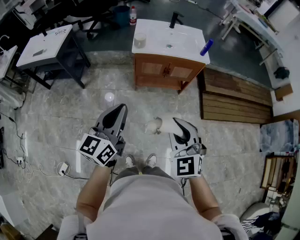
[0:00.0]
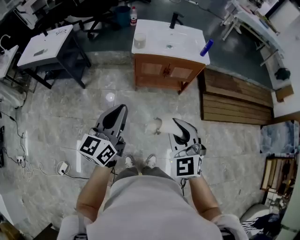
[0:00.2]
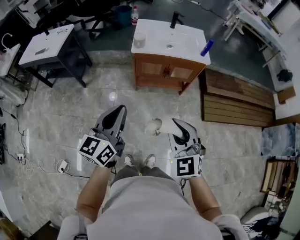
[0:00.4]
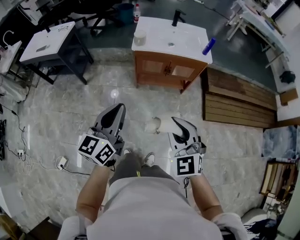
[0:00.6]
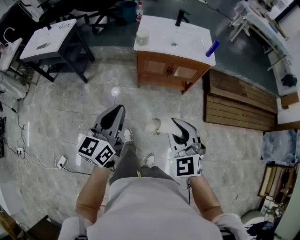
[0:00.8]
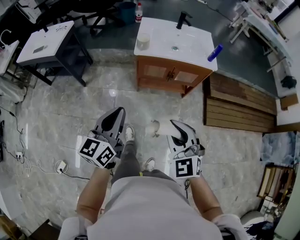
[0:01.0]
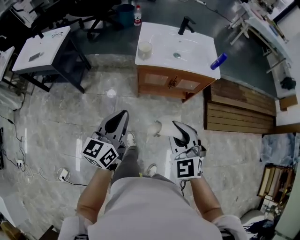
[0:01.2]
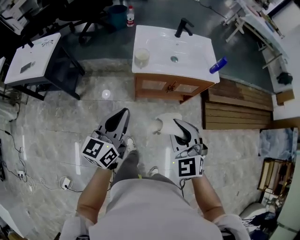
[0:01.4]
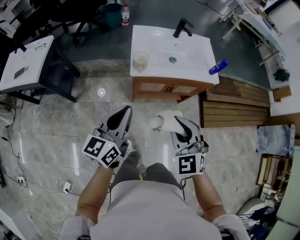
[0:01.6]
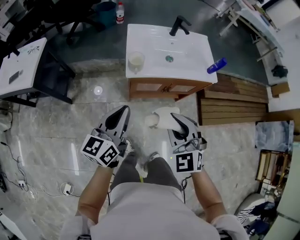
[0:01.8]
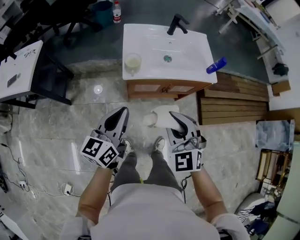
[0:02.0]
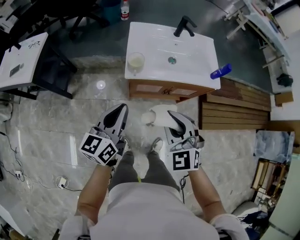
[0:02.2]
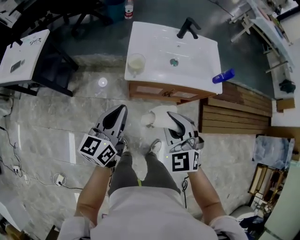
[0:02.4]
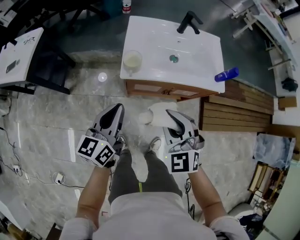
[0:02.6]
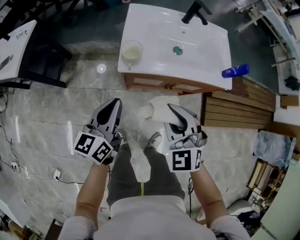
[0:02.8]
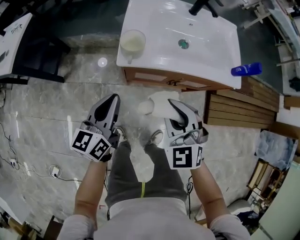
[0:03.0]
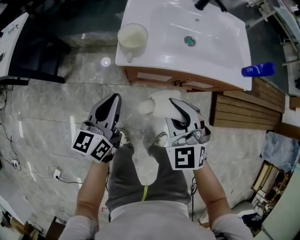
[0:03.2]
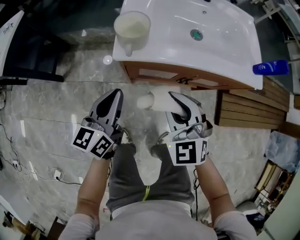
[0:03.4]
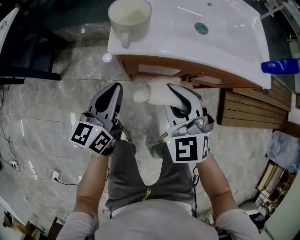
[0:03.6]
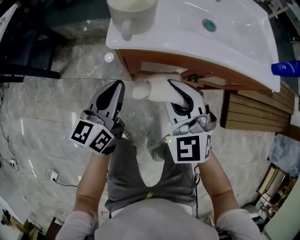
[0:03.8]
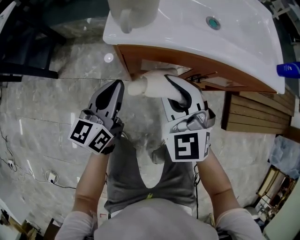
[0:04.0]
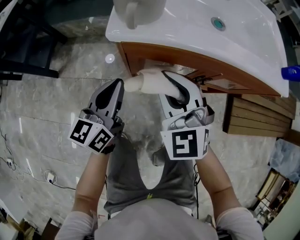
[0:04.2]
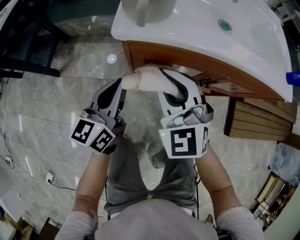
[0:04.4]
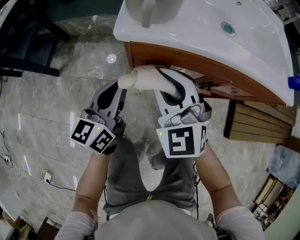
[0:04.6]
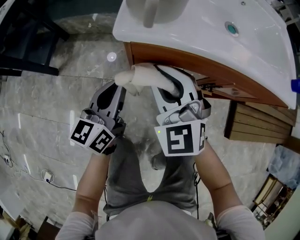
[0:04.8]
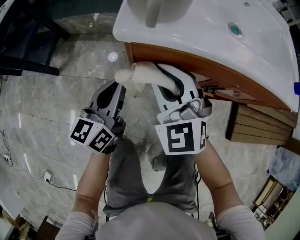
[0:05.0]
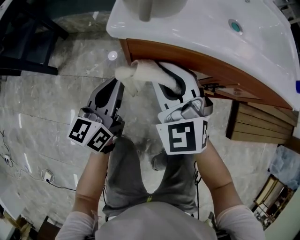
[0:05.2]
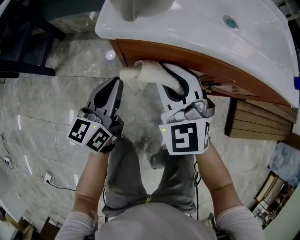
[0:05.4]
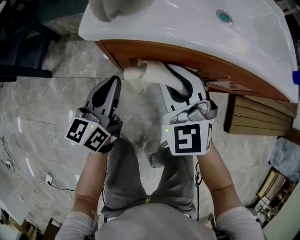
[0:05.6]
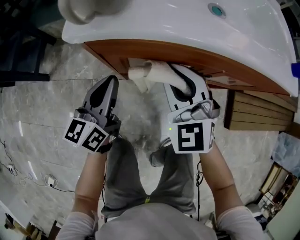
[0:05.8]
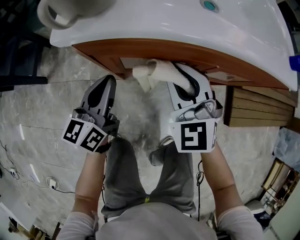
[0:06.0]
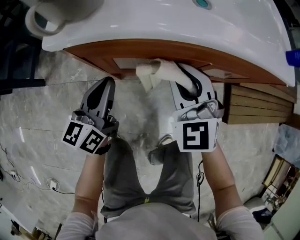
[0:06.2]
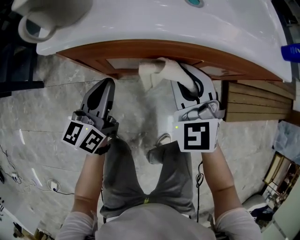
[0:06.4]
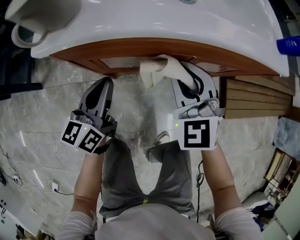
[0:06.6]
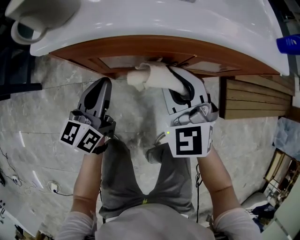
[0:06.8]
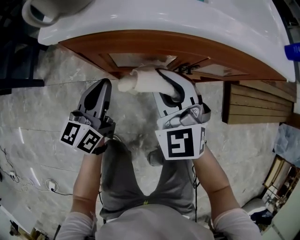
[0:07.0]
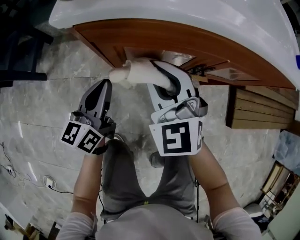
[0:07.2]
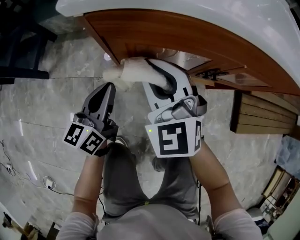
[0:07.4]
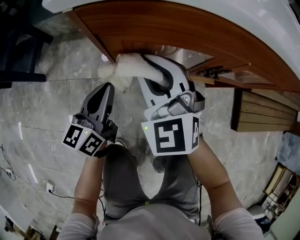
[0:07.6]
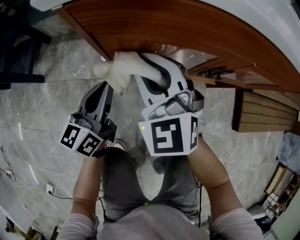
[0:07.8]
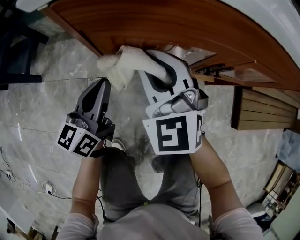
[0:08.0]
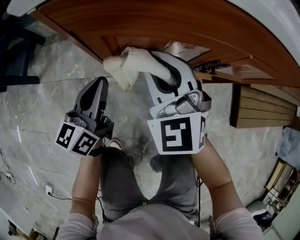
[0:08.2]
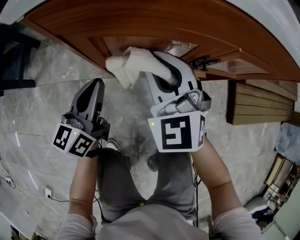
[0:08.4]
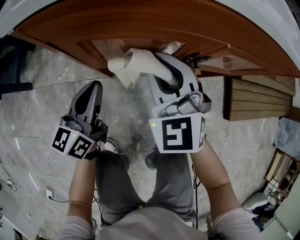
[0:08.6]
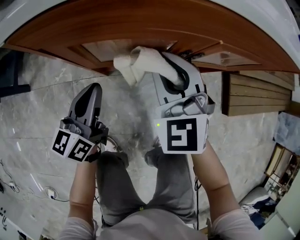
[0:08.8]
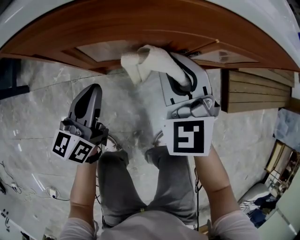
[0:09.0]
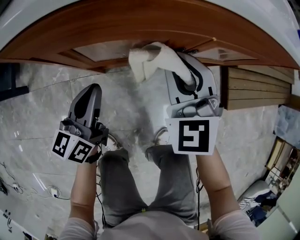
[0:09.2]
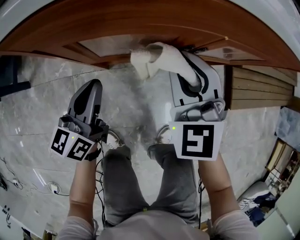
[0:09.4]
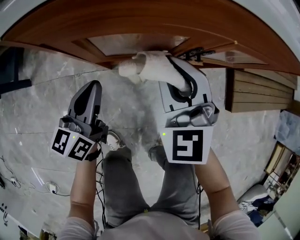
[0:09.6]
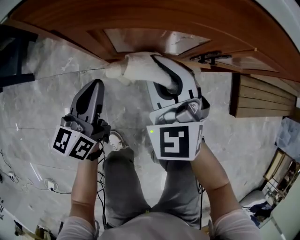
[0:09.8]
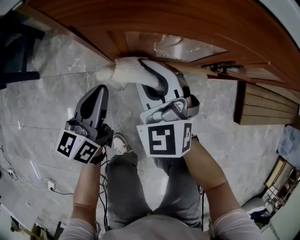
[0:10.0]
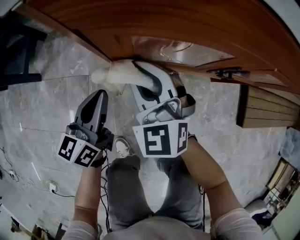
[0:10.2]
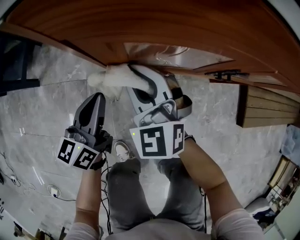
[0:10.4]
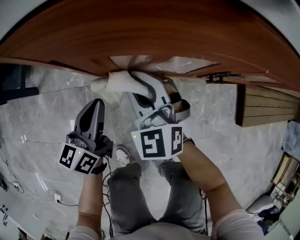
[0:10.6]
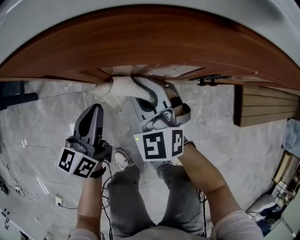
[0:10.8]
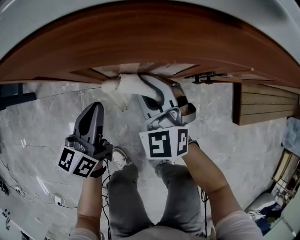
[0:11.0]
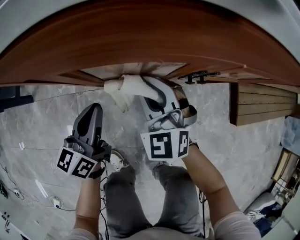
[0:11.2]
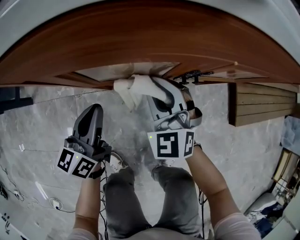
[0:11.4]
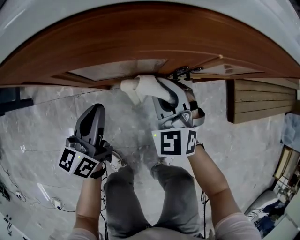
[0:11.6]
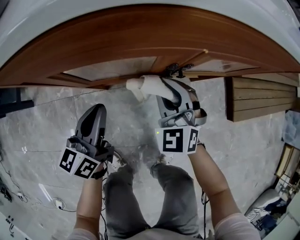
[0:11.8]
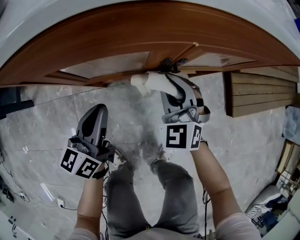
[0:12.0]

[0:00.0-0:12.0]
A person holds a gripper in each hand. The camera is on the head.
0:00.0 to 0:01.6: Both grippers travel together forward, about 30 cm.
0:01.6 to 0:03.0: The two grippers go roughly 30 cm downward and forward.
0:03.0 to 0:04.4: The grippers both shift downward by approximately 25 cm.
0:04.4 to 0:06.0: The right gripper is displaced to the right and downward by approximately 15 cm. The left gripper heads to the right and downward, covering some 10 cm.
0:06.0 to 0:07.6: The right gripper is displaced to the left and downward by roughly 15 cm. The left gripper goes some 10 cm downward.
0:07.6 to 0:09.0: The right gripper heads to the right, covering some 15 cm, while the left gripper goes roughly 10 cm to the right.
0:09.0 to 0:10.4: The left gripper shifts approximately 10 cm to the left and downward. Meanwhile the right gripper moves to the left and downward, approximately 20 cm.
0:10.4 to 0:12.0: The right gripper heads to the right, covering about 25 cm. The left gripper is displaced to the right by approximately 15 cm.

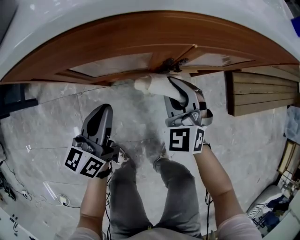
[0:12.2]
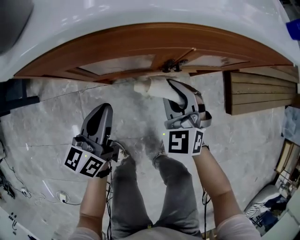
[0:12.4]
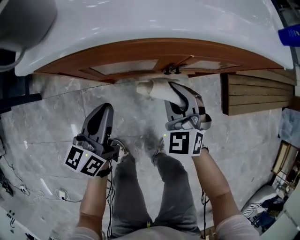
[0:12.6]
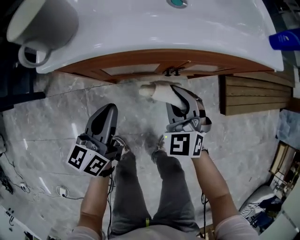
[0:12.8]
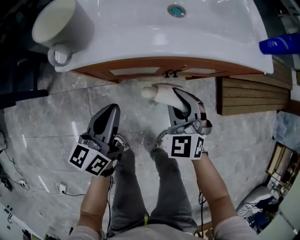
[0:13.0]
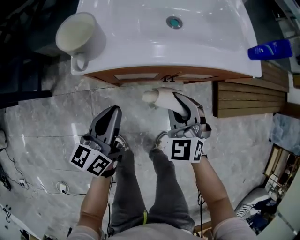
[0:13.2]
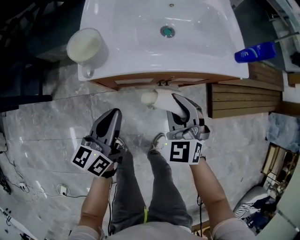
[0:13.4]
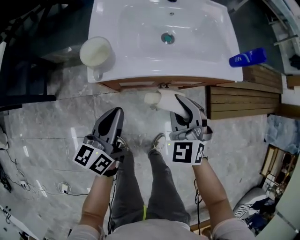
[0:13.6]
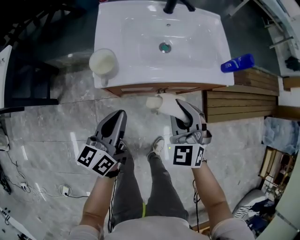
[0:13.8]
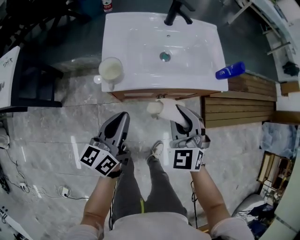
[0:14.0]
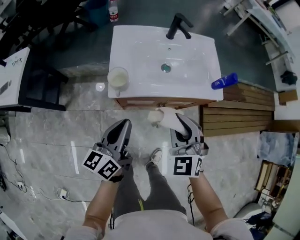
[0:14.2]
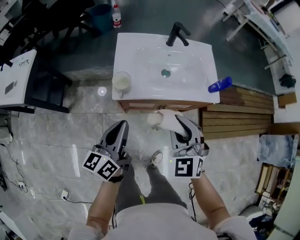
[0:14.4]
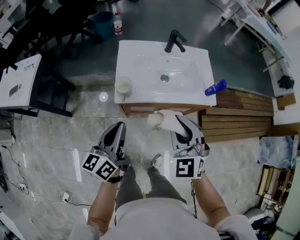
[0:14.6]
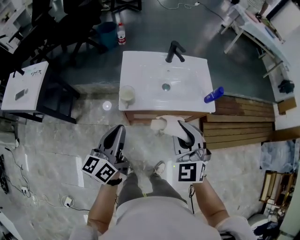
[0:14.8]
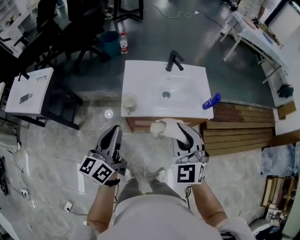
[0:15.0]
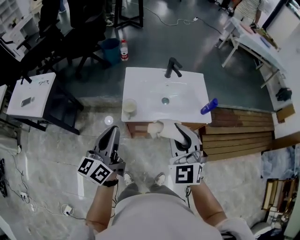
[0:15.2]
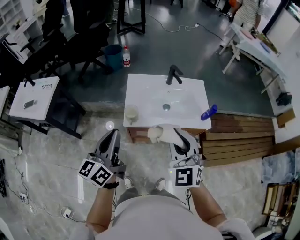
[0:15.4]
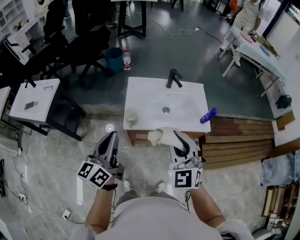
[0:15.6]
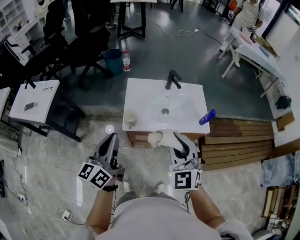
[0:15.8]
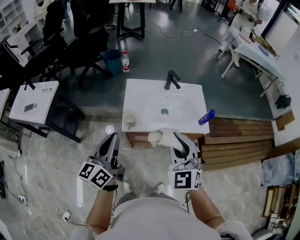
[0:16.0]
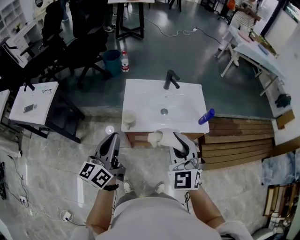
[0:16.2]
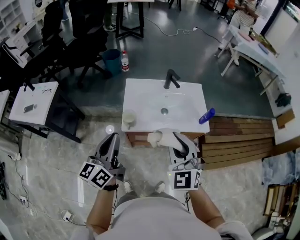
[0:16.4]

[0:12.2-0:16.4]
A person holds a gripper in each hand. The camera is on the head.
0:12.2 to 0:13.6: The grippers both shift upward by approximately 35 cm.
0:13.6 to 0:15.0: The two grippers go roughly 35 cm upward.
0:15.0 to 0:16.4: The grippers move only a little.

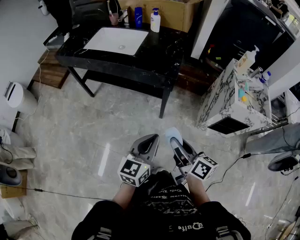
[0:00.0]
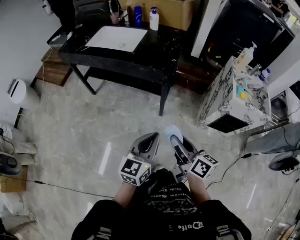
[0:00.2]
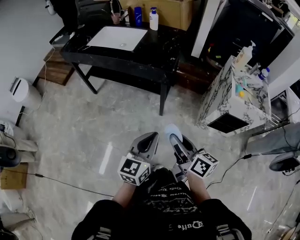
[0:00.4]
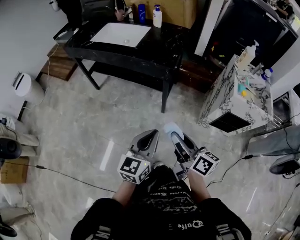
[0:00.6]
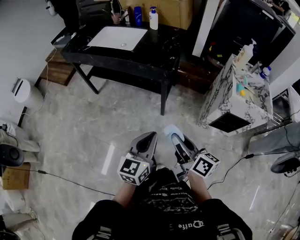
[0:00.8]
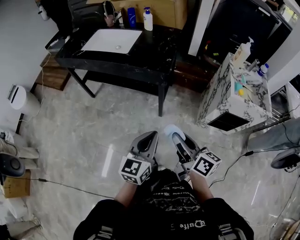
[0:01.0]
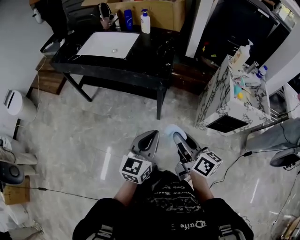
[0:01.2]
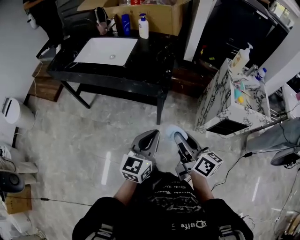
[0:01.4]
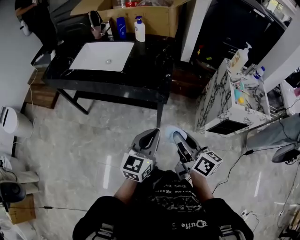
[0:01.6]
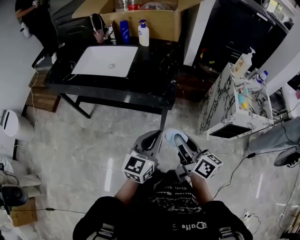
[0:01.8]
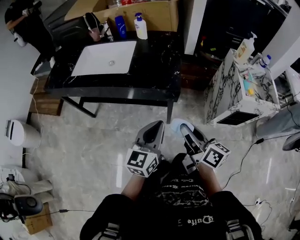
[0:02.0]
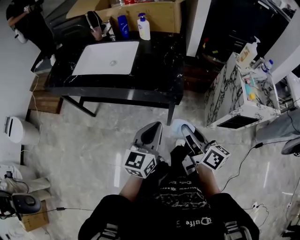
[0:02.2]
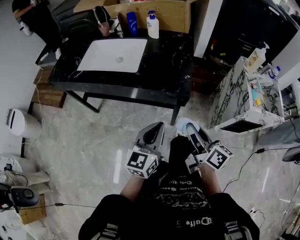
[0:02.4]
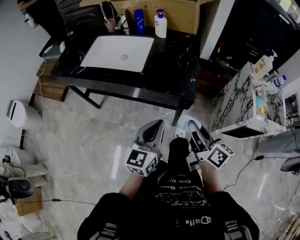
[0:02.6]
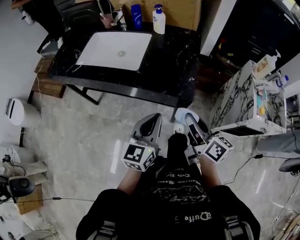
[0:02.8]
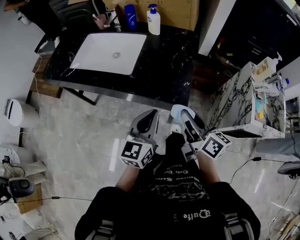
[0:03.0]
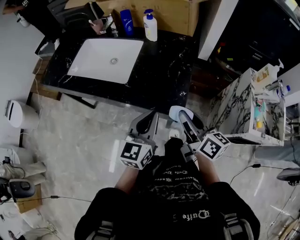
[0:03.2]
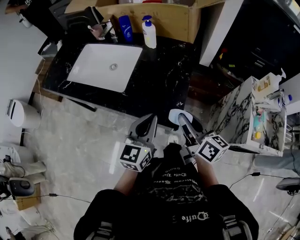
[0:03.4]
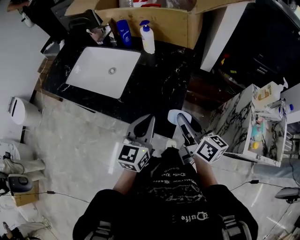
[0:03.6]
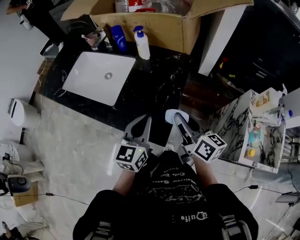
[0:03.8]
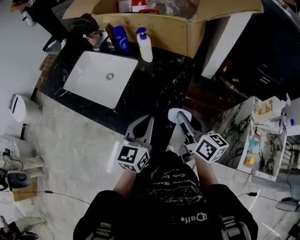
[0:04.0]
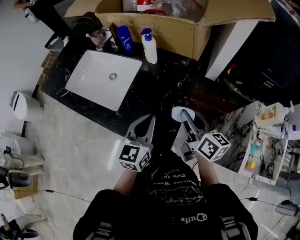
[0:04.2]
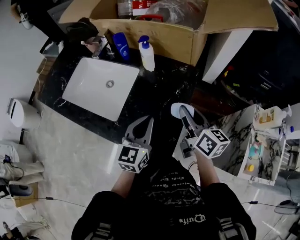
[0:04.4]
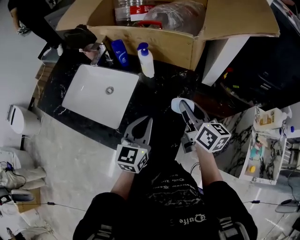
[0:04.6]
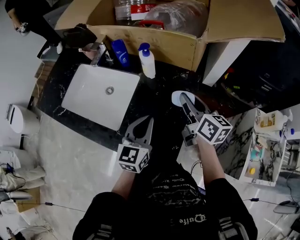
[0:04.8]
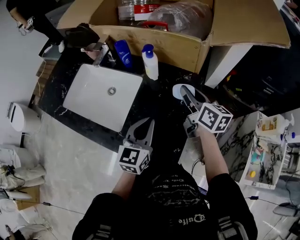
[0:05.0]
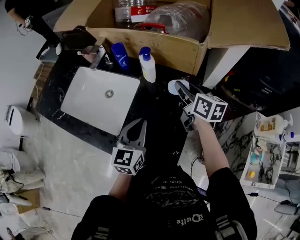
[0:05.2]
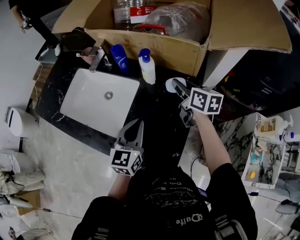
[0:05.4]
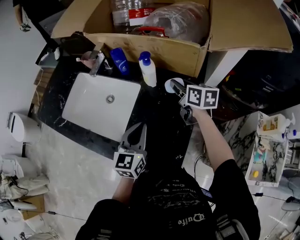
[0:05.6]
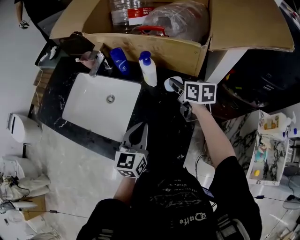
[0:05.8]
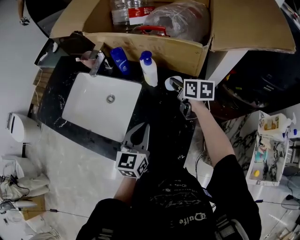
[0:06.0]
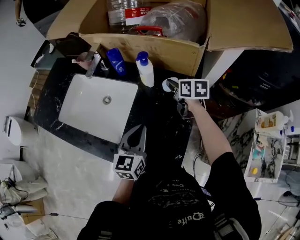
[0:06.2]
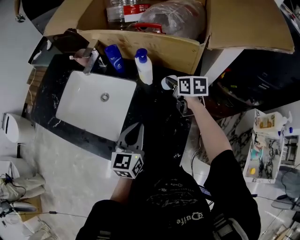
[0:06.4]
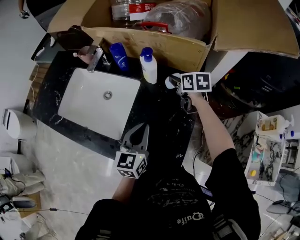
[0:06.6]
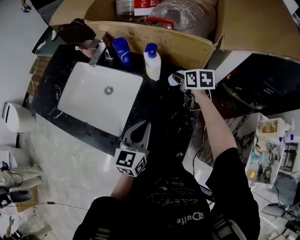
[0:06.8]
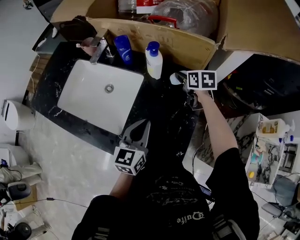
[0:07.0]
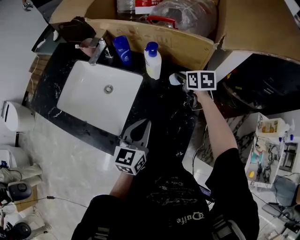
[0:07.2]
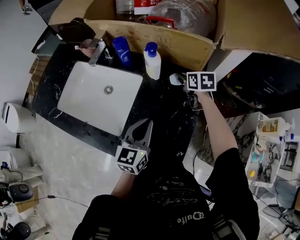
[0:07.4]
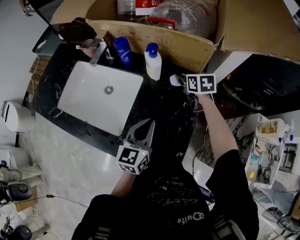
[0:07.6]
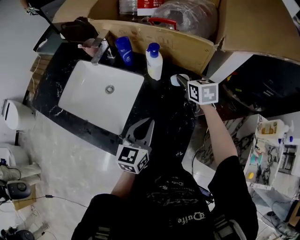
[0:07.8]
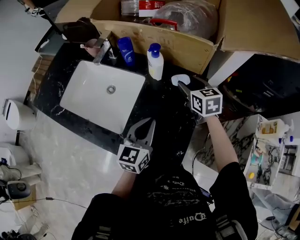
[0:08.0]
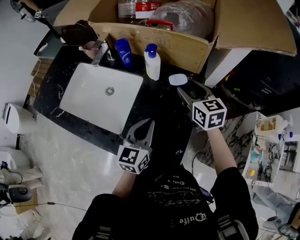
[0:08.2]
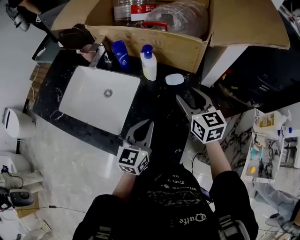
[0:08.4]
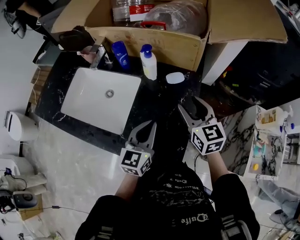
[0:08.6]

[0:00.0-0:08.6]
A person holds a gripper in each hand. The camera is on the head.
0:00.0 to 0:01.4: Both grippers travel together forward, roughly 5 cm.
0:01.4 to 0:02.8: The right gripper shifts about 20 cm forward; the left gripper moves forward and to the left, approximately 20 cm.
0:02.8 to 0:04.4: Both grippers travel together forward, approximately 30 cm.
0:04.4 to 0:05.8: The right gripper moves forward, some 20 cm, and changes its angle by roughly 20 degrees. The left gripper heads forward, covering some 10 cm.
0:05.8 to 0:07.2: The right gripper travels downward by roughly 5 cm, and opens.
0:07.2 to 0:08.6: The right gripper shifts about 20 cm backward and upward, and changes its angle by approximately 30 degrees.
